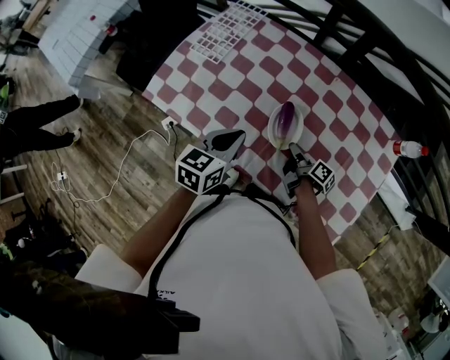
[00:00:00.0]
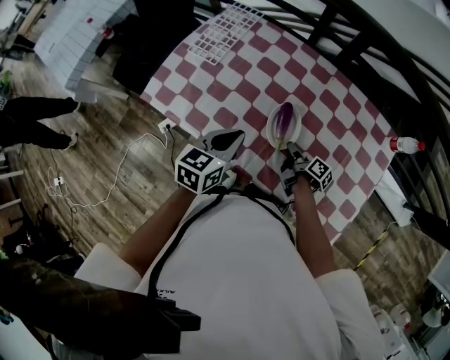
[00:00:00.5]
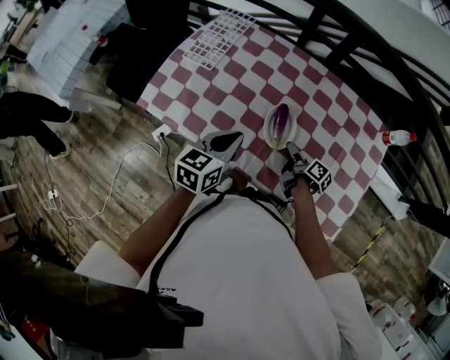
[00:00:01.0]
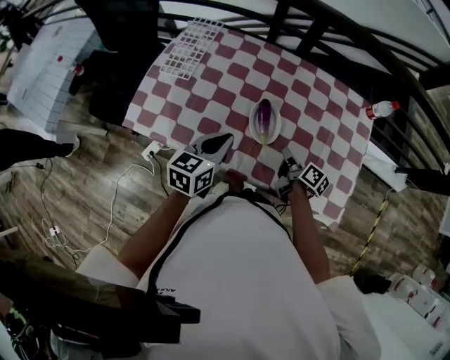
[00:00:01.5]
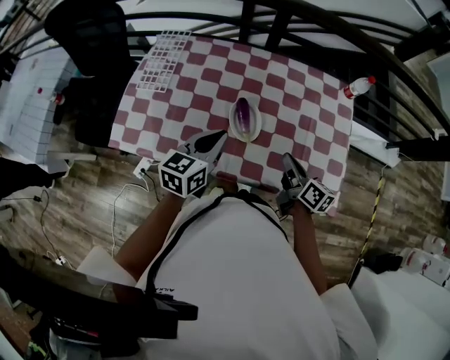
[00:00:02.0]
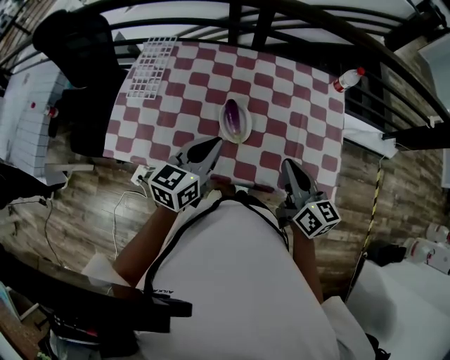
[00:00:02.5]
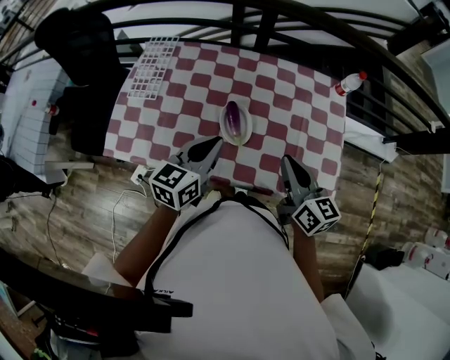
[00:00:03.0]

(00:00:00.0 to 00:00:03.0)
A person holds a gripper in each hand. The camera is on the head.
00:00:01.5 - 00:00:03.0: The left gripper shifts by some 10 cm.

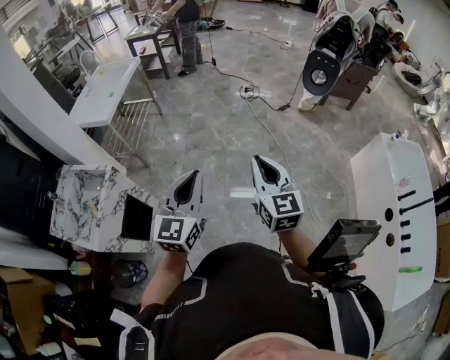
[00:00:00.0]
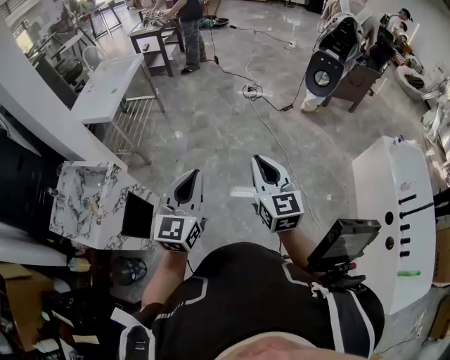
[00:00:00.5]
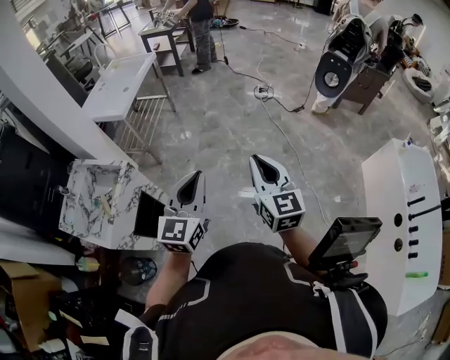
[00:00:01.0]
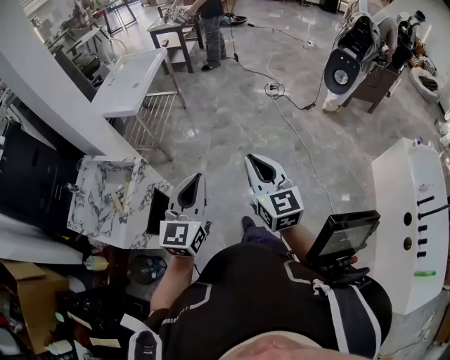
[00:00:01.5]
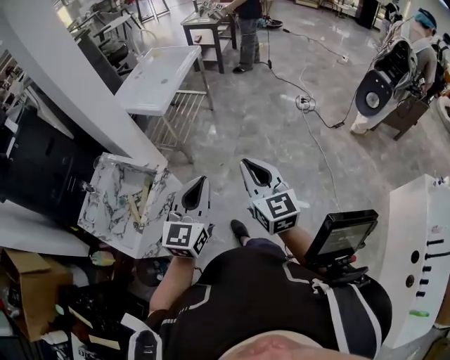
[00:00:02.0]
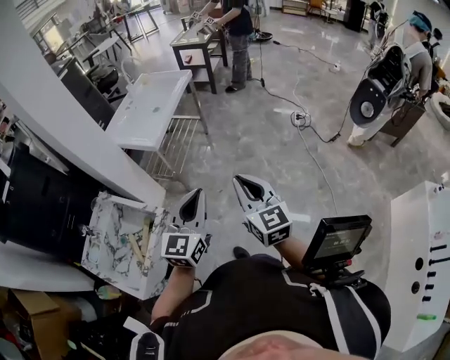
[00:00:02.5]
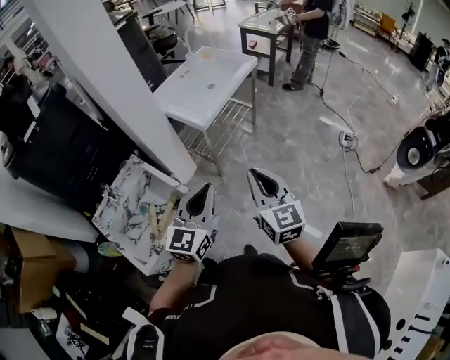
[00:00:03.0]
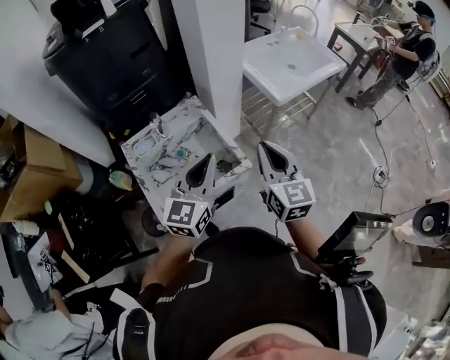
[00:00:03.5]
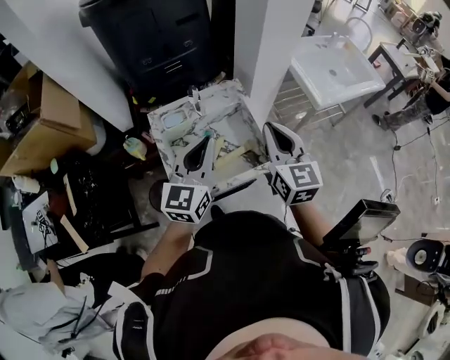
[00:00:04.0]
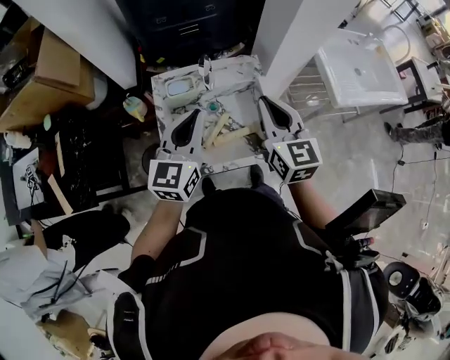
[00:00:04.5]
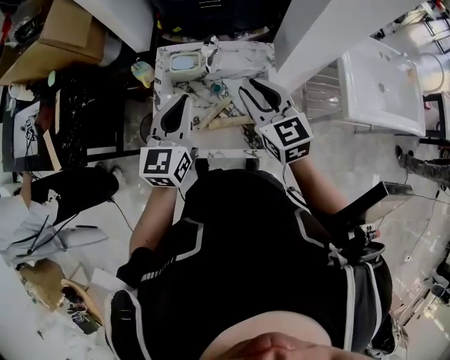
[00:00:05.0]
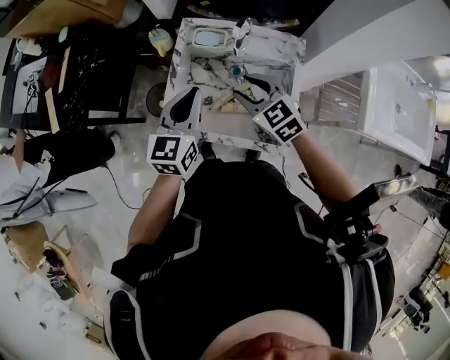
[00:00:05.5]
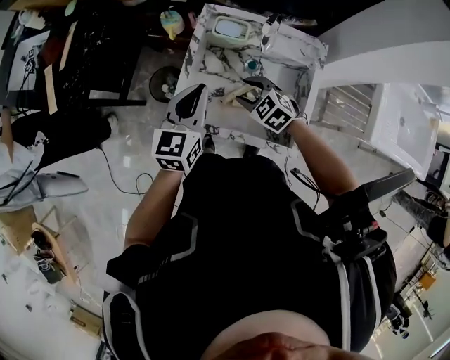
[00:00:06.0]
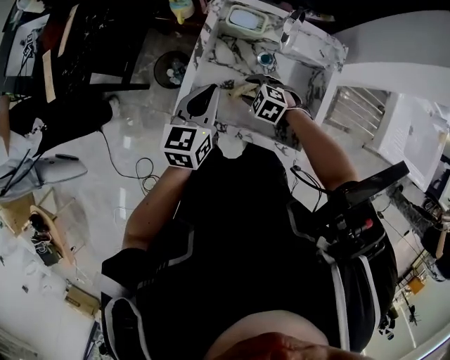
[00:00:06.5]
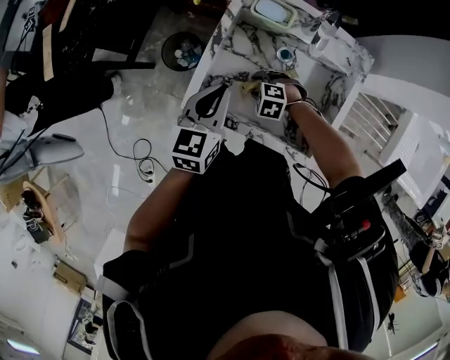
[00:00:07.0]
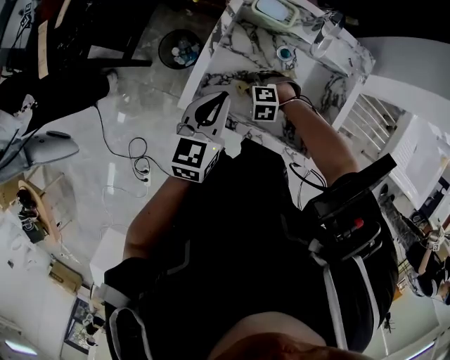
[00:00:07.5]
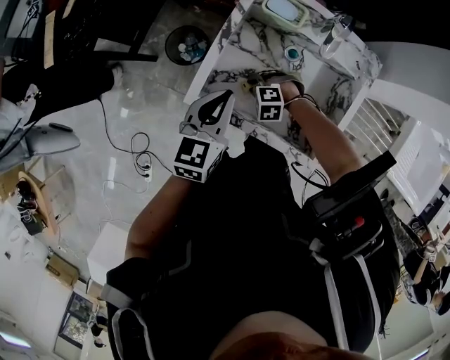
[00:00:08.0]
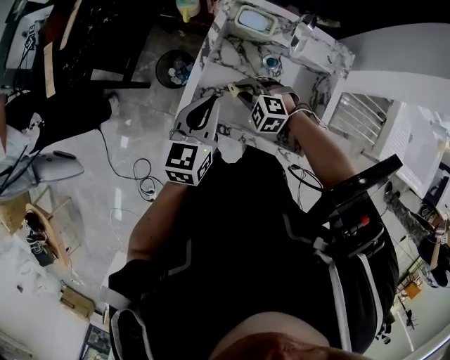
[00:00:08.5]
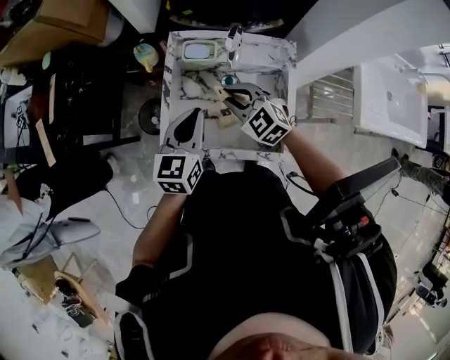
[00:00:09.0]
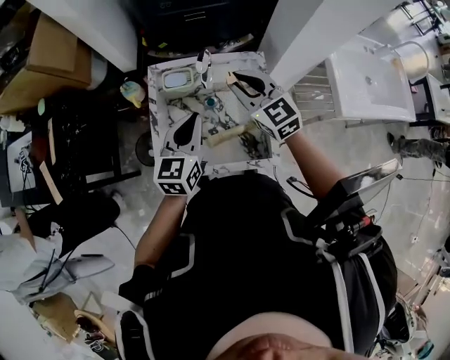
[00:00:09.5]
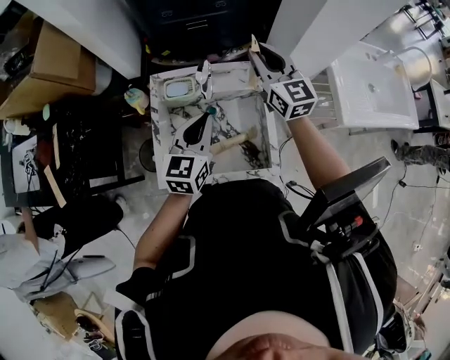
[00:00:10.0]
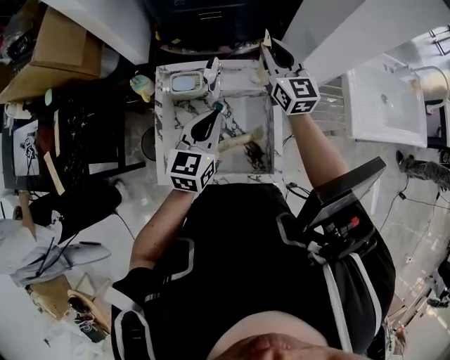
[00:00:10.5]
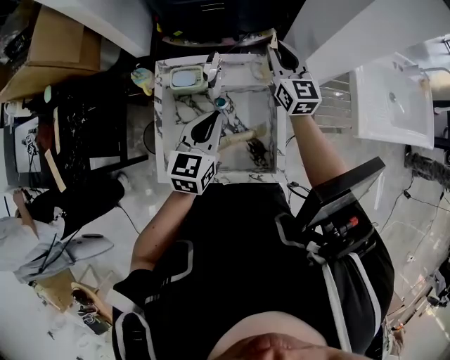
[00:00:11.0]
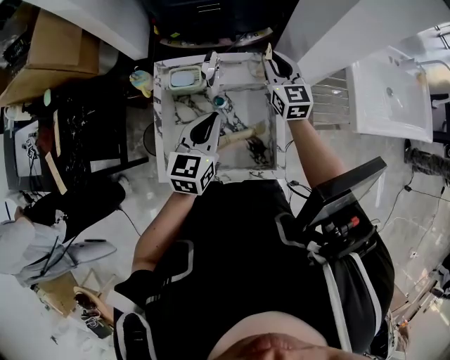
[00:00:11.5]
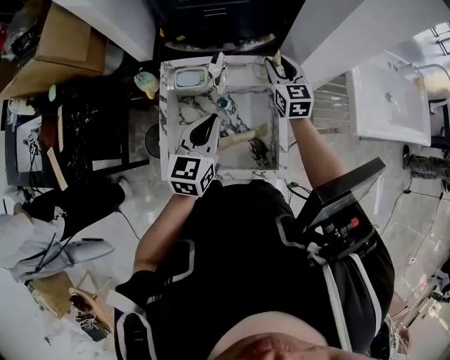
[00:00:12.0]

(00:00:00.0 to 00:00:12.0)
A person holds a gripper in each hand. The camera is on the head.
00:00:00.0 - 00:00:02.0: Both grippers move to the left and forward, roughly 25 cm. The right gripper rotates some 20 degrees.
00:00:02.0 - 00:00:04.0: Both grippers are carried some 40 cm. The left gripper turns by some 50 degrees. The right gripper changes its angle by some 40 degrees.
00:00:04.0 - 00:00:06.0: The right gripper goes about 30 cm downward, points its fingers approximately 40 degrees further downward, and opens up. The left gripper goes some 15 cm downward, and rotates roughly 40 degrees.
00:00:06.0 - 00:00:08.0: The left gripper shifts roughly 10 cm downward; the right gripper moves downward, some 15 cm, rotates around the line of its fingers by roughly 40 degrees, counterclockwise from behind, and closes up.
00:00:08.0 - 00:00:10.0: The right gripper goes some 40 cm upward, and tips its fingers upward by roughly 70 degrees; the left gripper ends up roughly 20 cm from where it was, and turns by approximately 30 degrees.
00:00:10.0 - 00:00:12.0: The right gripper shifts about 15 cm downward.

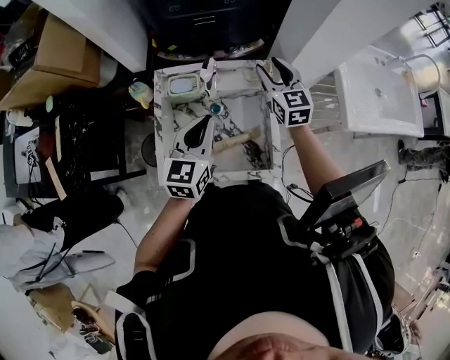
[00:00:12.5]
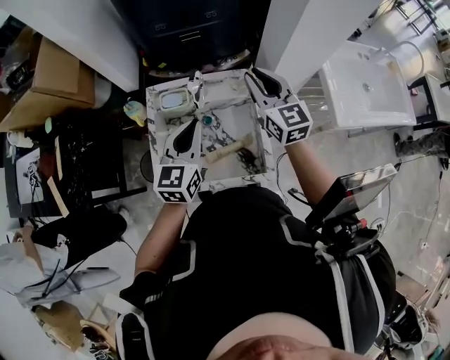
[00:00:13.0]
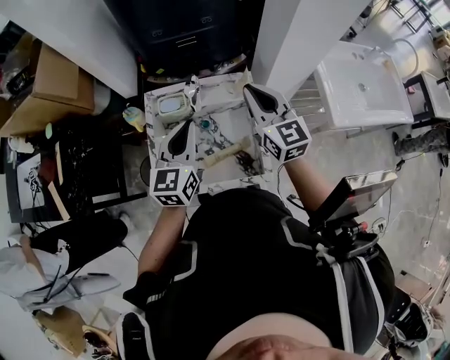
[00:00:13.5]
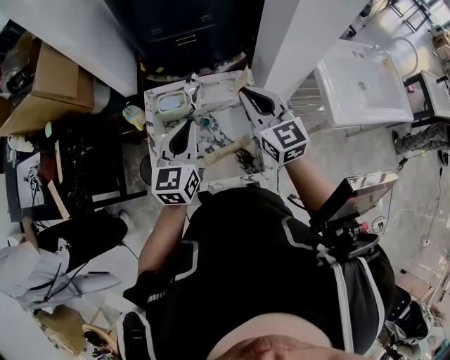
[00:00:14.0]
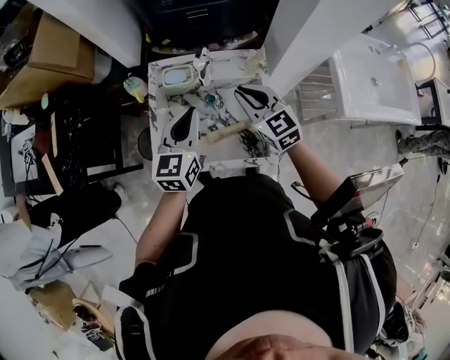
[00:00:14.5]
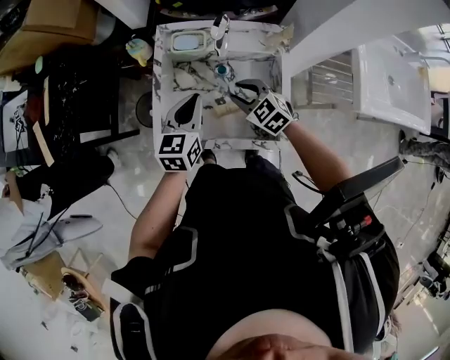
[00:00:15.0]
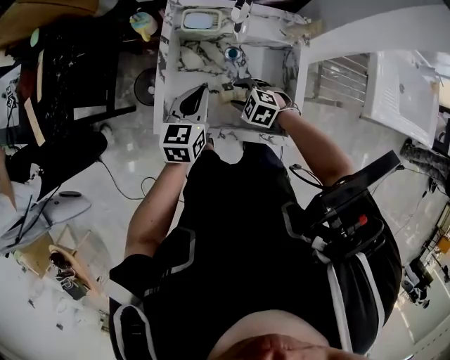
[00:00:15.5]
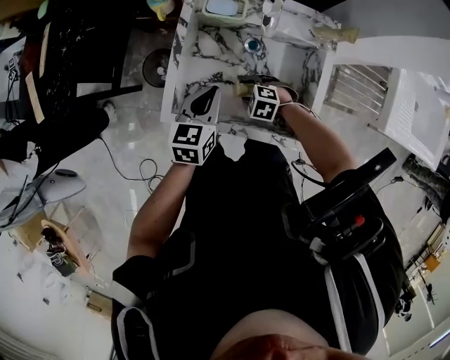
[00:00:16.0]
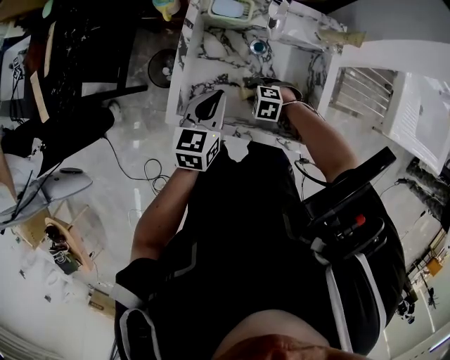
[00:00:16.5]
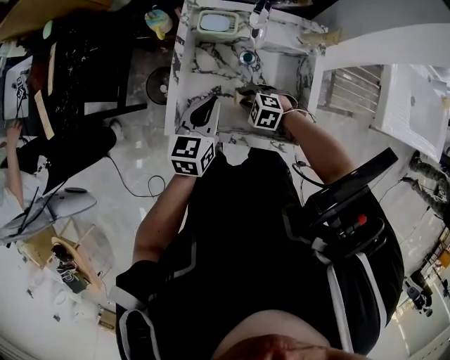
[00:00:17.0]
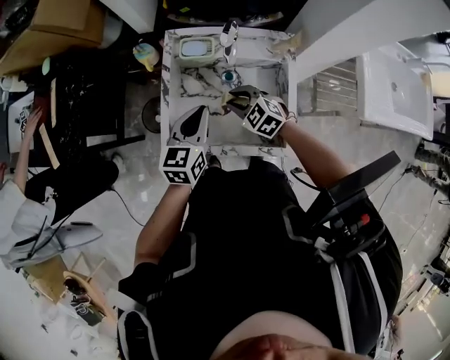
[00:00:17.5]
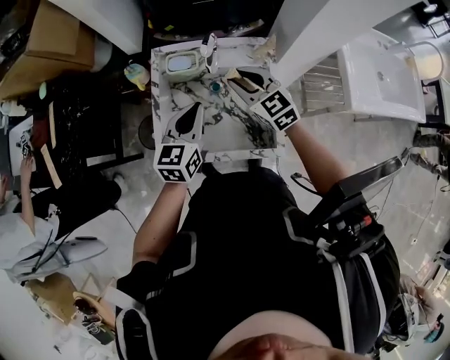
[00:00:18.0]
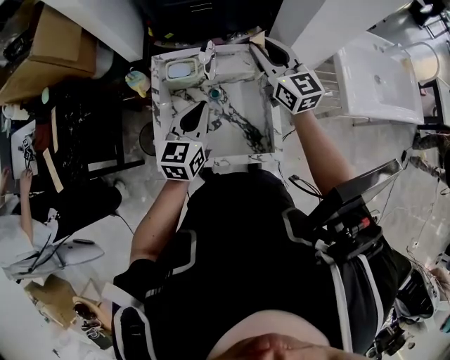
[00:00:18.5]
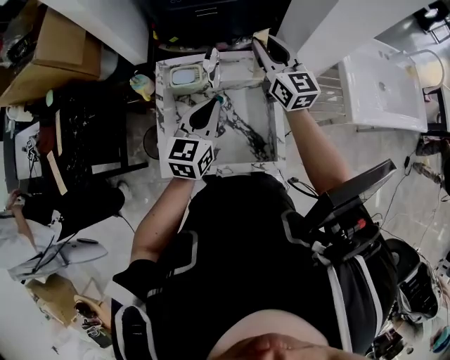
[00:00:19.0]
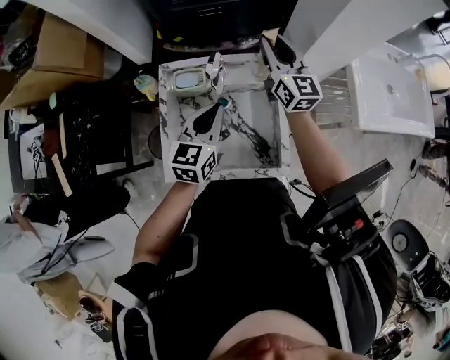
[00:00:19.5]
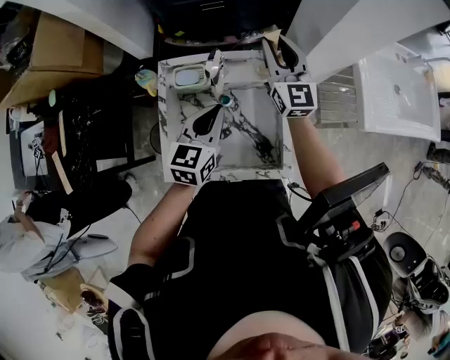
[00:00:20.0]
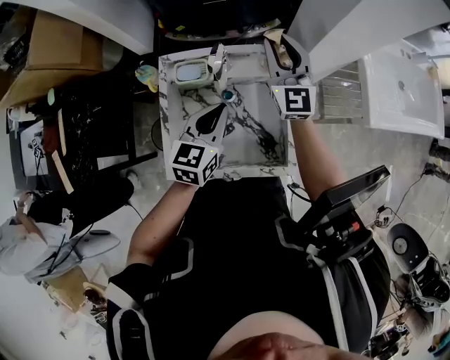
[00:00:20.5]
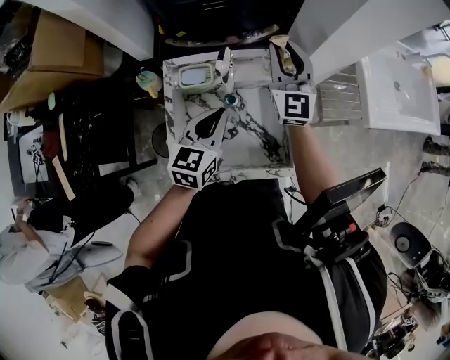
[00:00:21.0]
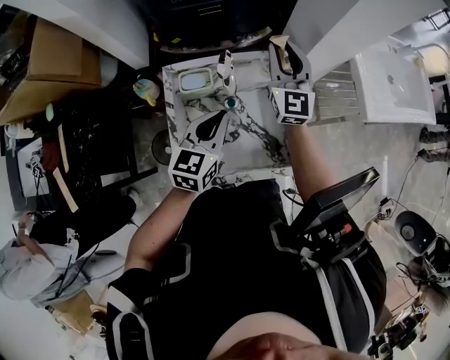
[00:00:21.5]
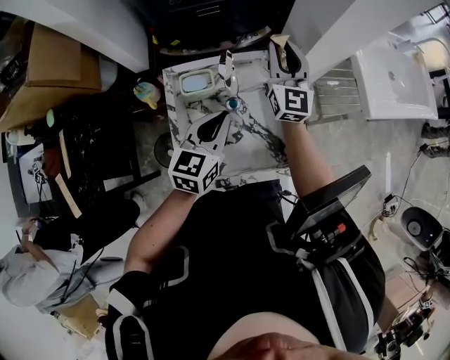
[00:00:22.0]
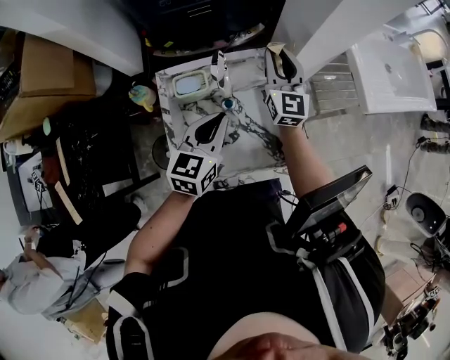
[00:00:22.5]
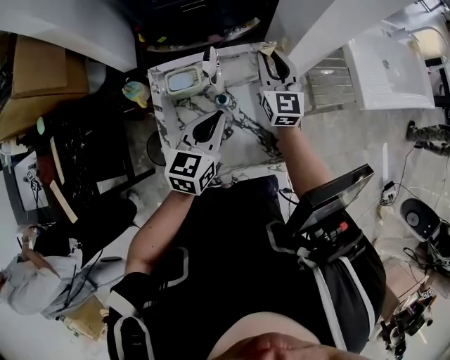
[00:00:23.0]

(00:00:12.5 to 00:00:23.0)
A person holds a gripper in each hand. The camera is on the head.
00:00:12.5 - 00:00:14.5: The right gripper moves backward and to the left, some 15 cm, rotates approximately 20 degrees, and closes up.
00:00:14.5 - 00:00:16.5: The right gripper goes some 35 cm downward, tilts its fingers about 50 degrees downward, and opens; the left gripper shifts roughly 15 cm downward, and changes its angle by roughly 20 degrees.
00:00:16.5 - 00:00:19.0: The left gripper goes roughly 15 cm upward, and turns by approximately 20 degrees. Meanwhile the right gripper heads upward, covering approximately 40 cm, and tilts its fingers about 70 degrees upward.
00:00:19.0 - 00:00:21.0: The right gripper rotates roughly 30 degrees.
00:00:21.0 - 00:00:23.0: The right gripper goes approximately 10 cm downward.

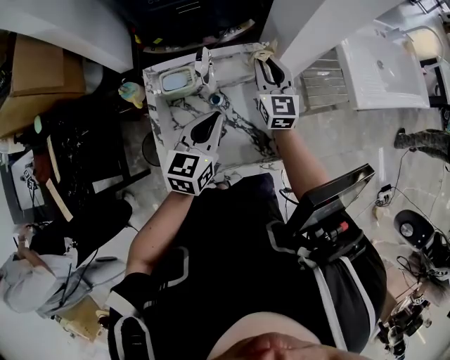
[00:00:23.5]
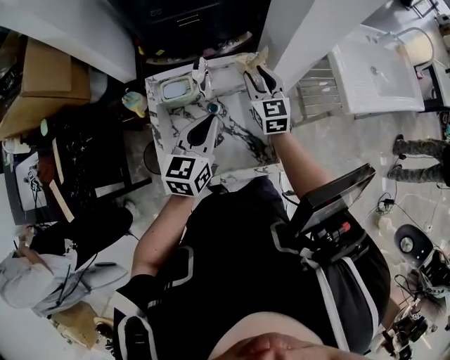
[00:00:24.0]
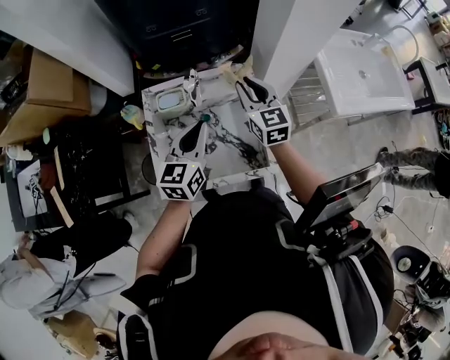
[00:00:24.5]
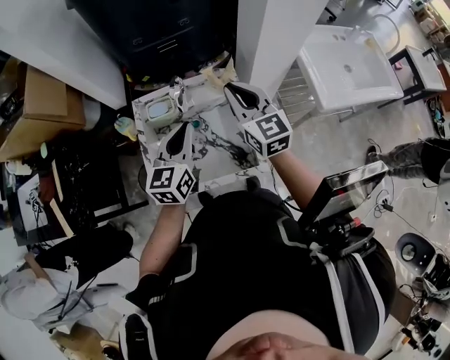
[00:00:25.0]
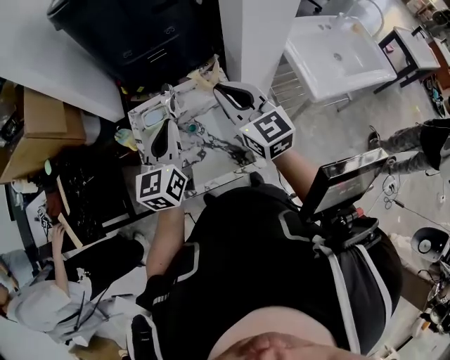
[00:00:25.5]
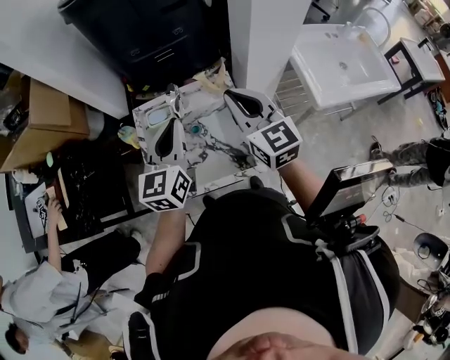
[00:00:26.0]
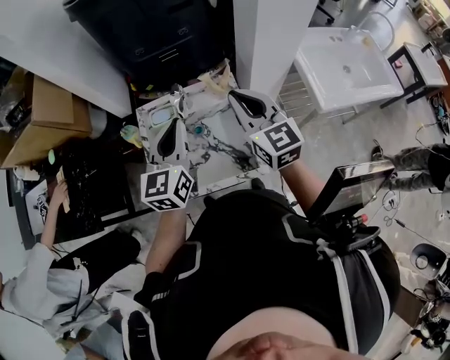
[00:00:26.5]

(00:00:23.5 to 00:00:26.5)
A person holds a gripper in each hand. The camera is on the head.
00:00:23.5 - 00:00:25.0: The left gripper shifts some 10 cm upward. Meanwhile the right gripper shifts approximately 15 cm upward and backward.
00:00:25.0 - 00:00:26.5: Both grippers travel together upward, about 5 cm.
